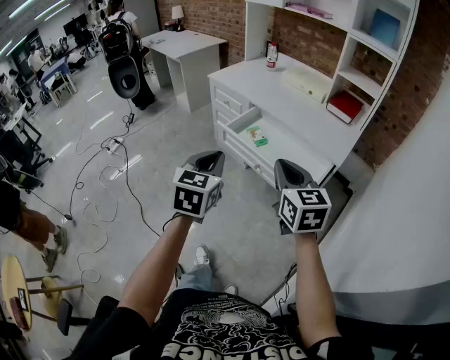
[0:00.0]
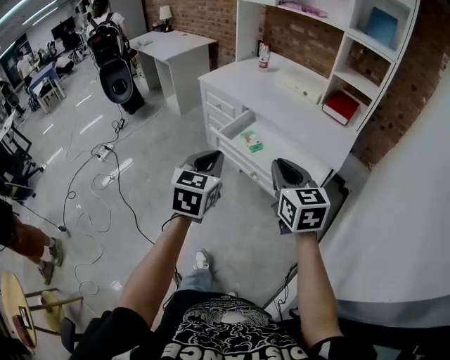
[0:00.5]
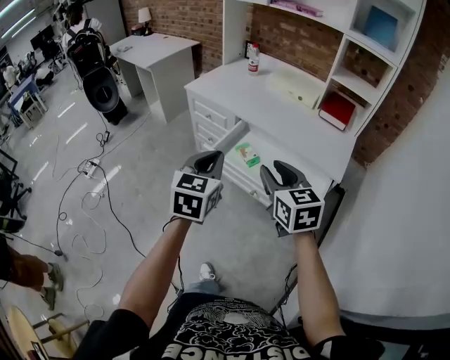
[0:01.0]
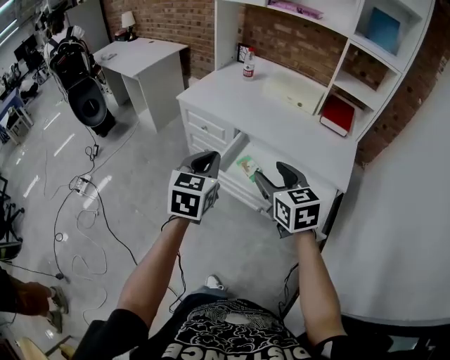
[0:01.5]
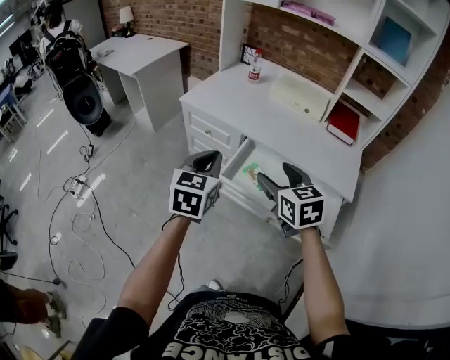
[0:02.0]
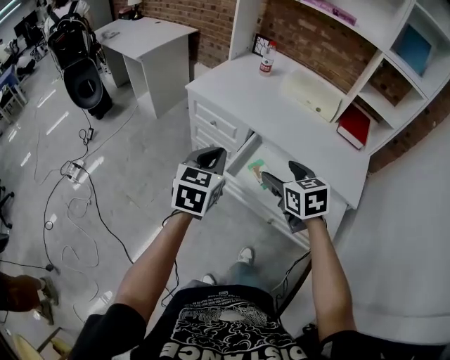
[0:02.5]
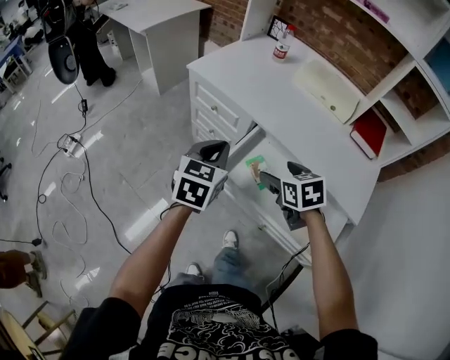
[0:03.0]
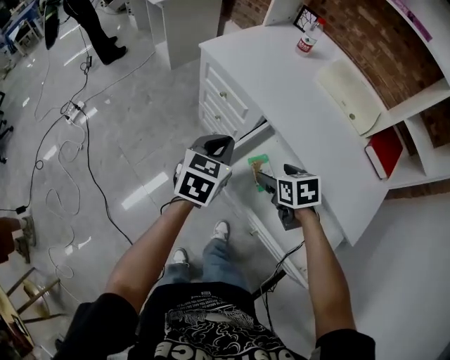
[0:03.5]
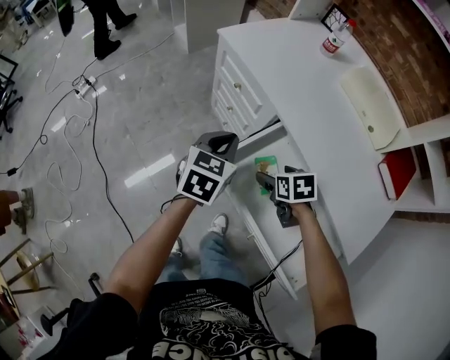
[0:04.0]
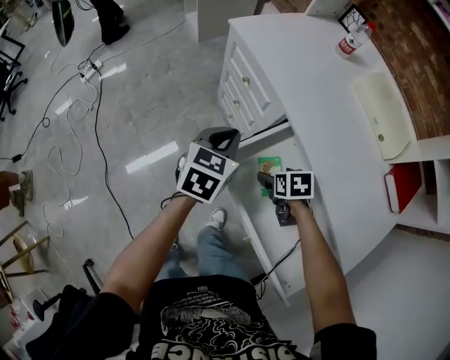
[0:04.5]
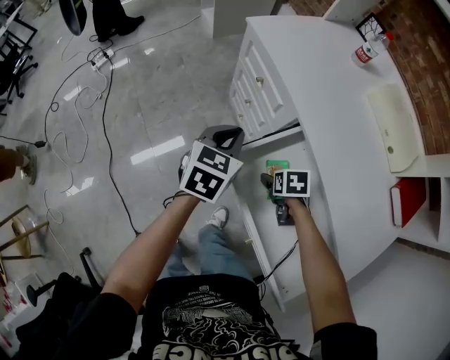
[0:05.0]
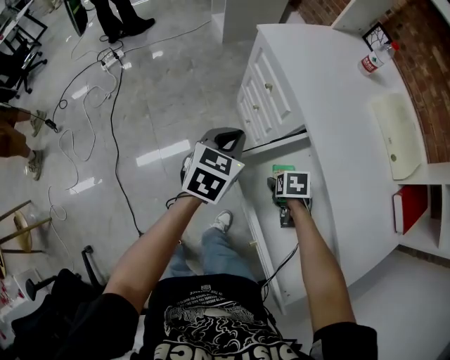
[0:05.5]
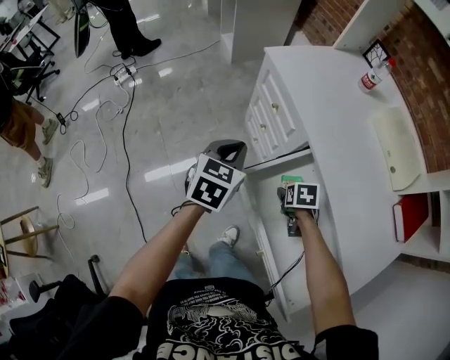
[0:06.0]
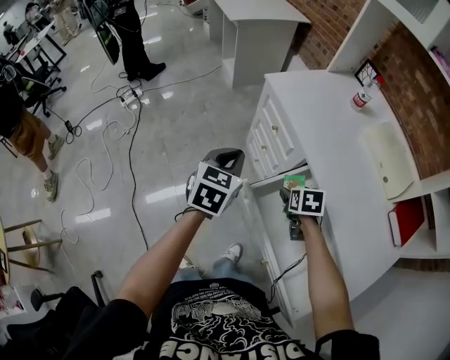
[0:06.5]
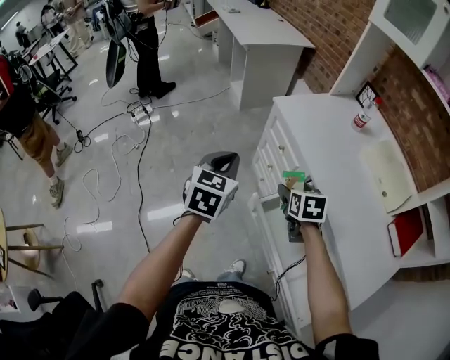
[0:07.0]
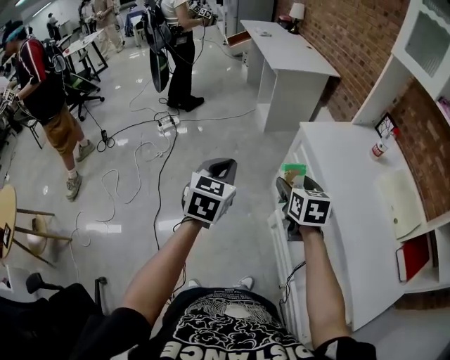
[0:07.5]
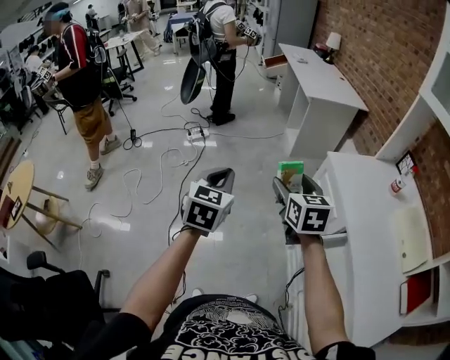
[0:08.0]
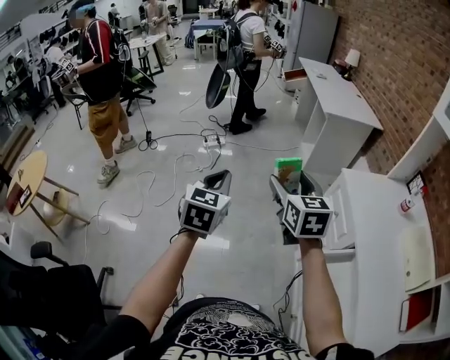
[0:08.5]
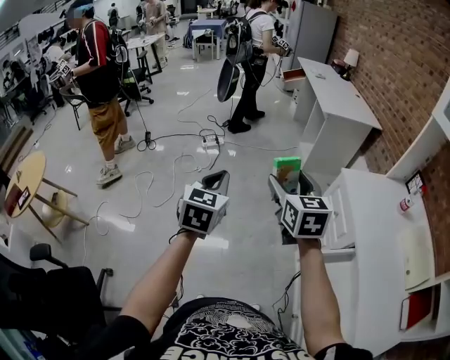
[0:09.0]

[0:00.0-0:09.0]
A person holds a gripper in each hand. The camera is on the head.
0:00.0 to 0:02.0: The left gripper shifts about 30 cm forward. Meanwhile the right gripper travels forward and to the left by roughly 30 cm, and opens up.
0:02.0 to 0:04.5: The grippers both shift downward and forward by about 30 cm. The left gripper rotates roughly 20 degrees. The right gripper tilts its fingers approximately 40 degrees downward.
0:04.5 to 0:07.0: The left gripper changes place by about 20 cm. The right gripper shifts some 20 cm upward, and swivels roughly 20 degrees.
0:07.0 to 0:09.0: The left gripper moves about 30 cm, and swivels about 30 degrees. The right gripper moves about 40 cm, and tips its fingers upward by some 30 degrees.

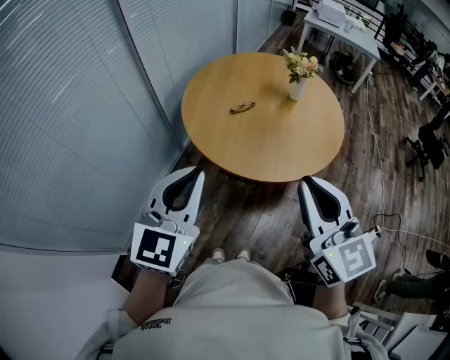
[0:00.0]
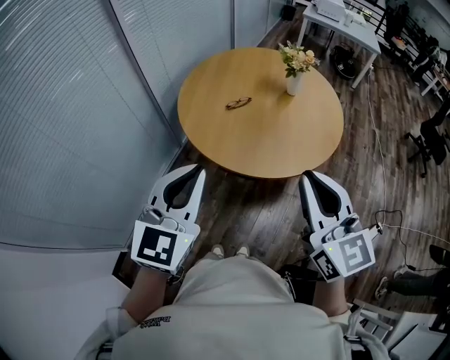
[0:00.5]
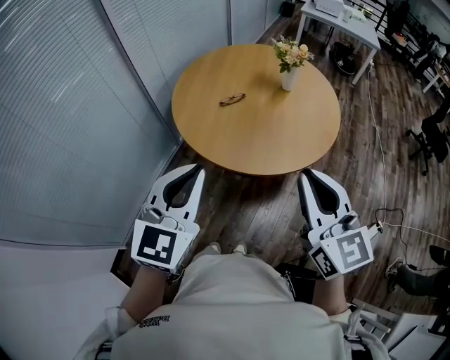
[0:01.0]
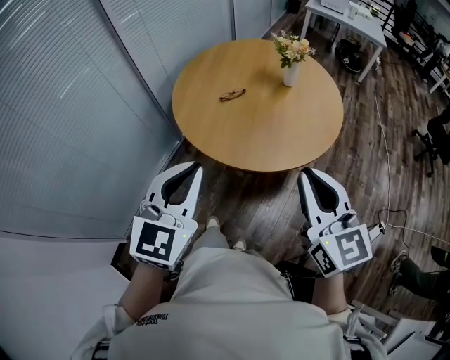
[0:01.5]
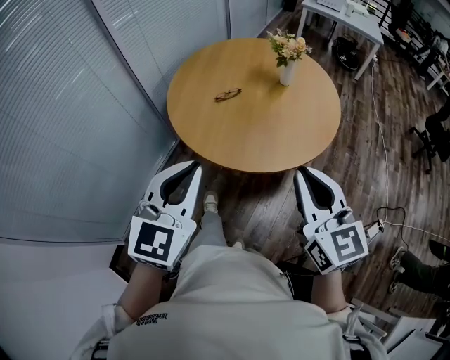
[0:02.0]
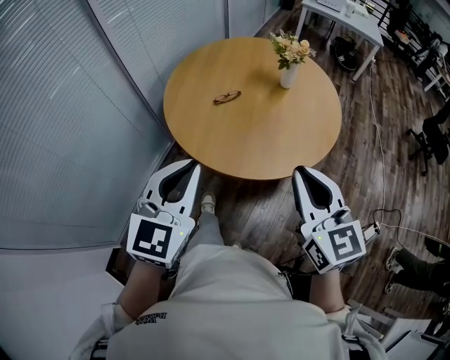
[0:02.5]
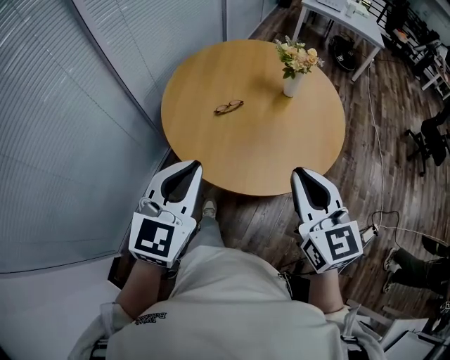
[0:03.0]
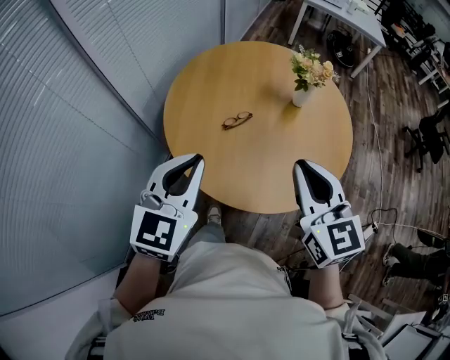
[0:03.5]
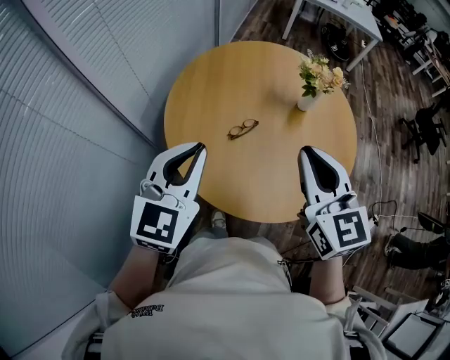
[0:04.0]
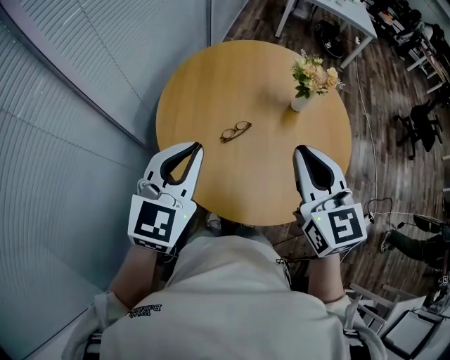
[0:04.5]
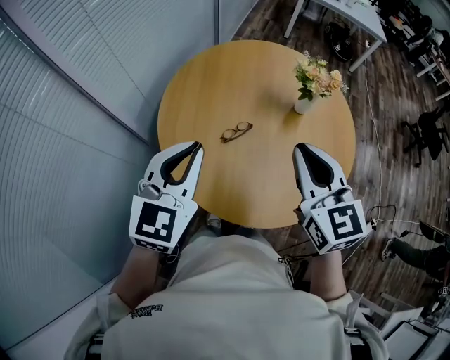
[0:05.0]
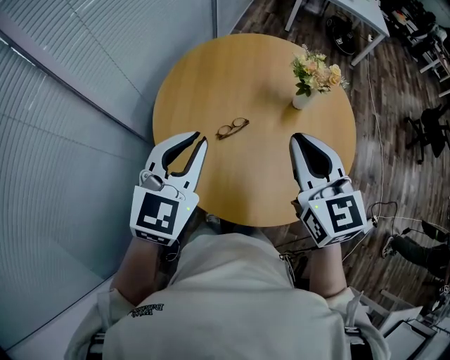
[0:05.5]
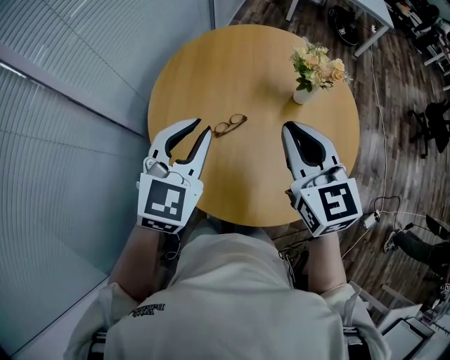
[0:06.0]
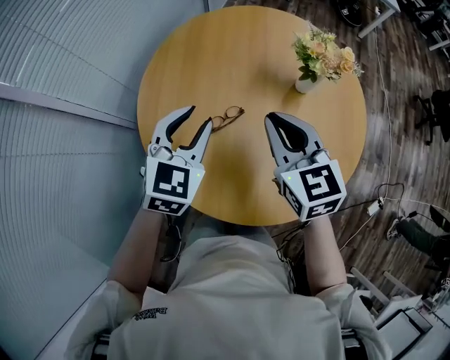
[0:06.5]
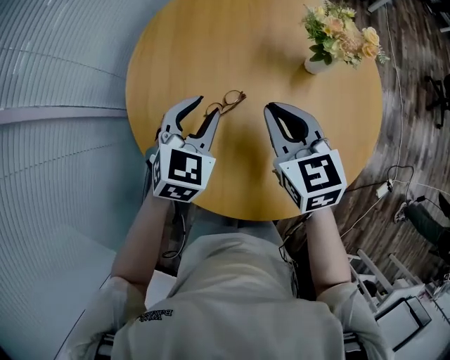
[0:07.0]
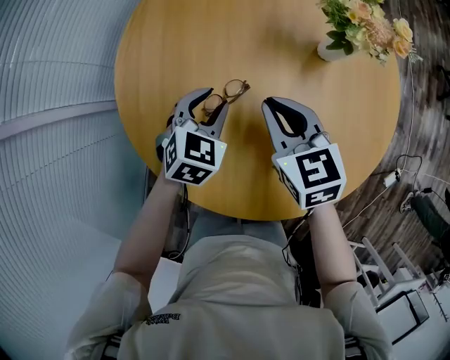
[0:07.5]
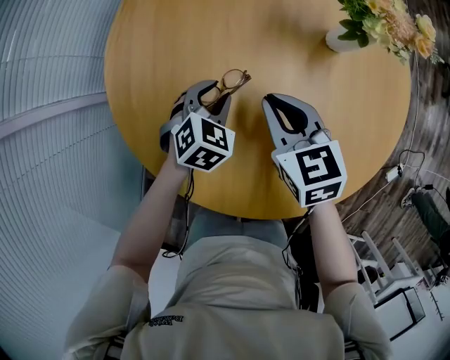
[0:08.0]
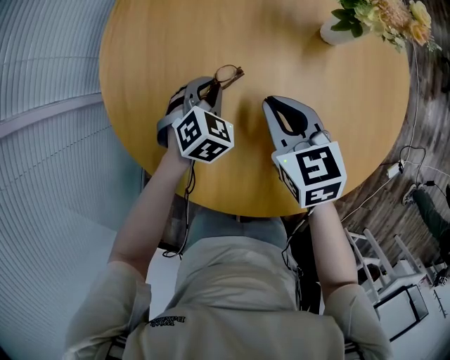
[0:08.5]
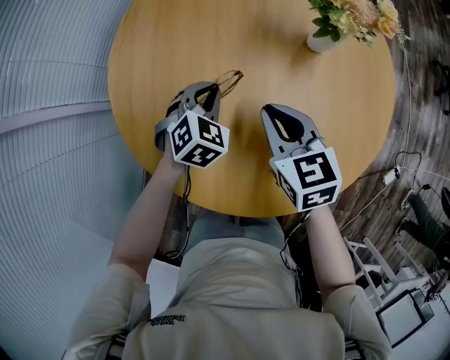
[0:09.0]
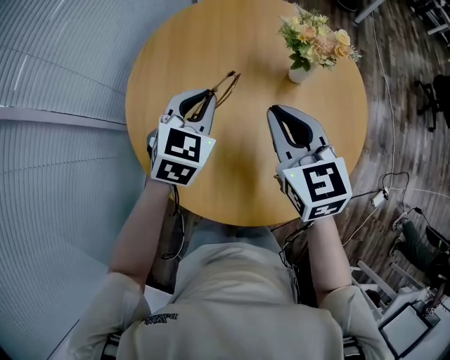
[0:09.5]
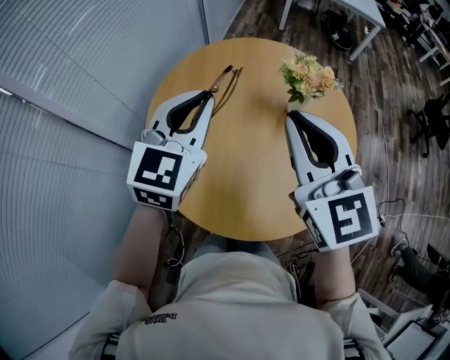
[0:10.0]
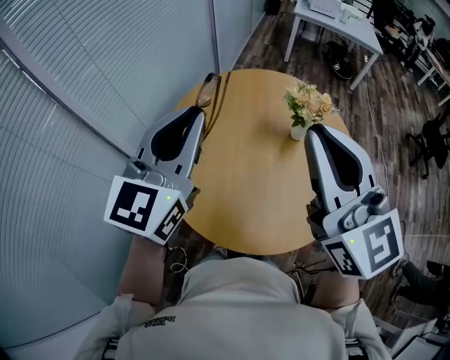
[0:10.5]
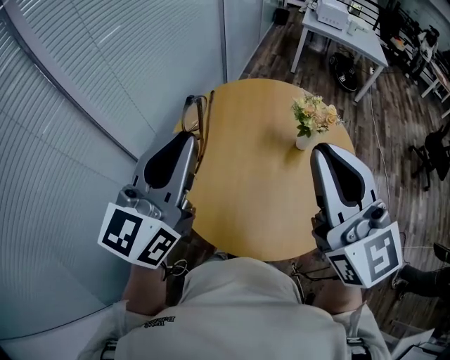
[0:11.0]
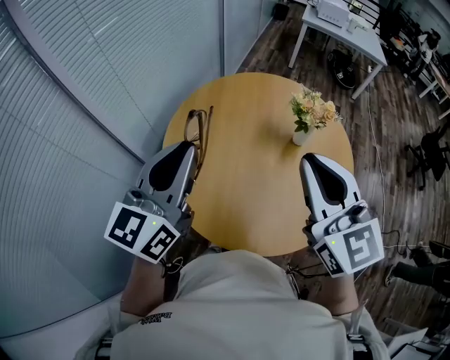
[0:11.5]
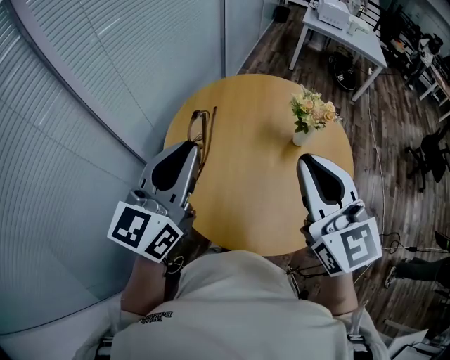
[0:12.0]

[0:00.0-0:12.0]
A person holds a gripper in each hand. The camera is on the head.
0:00.0 to 0:02.0: The left gripper is displaced to the right by roughly 10 cm. Meanwhile the right gripper is displaced to the right and downward by some 10 cm.
0:02.0 to 0:04.0: Both grippers move forward and to the left, roughly 35 cm.
0:04.0 to 0:06.0: The right gripper shifts roughly 10 cm forward; the left gripper heads forward and to the right, covering some 10 cm.
0:06.0 to 0:08.0: Both grippers travel together downward, approximately 35 cm. The left gripper angles its fingers downward, by approximately 30 degrees, and opens, while the right gripper swivels roughly 30 degrees.
0:08.0 to 0:10.0: The grippers both shift upward by about 40 cm. The right gripper tips its fingers upward by roughly 30 degrees; the left gripper tips its fingers upward by approximately 40 degrees, and closes.
0:10.0 to 0:12.0: The right gripper shifts about 10 cm backward. Meanwhile the left gripper heads backward, to the left and upward, covering some 15 cm, and swivels approximately 30 degrees.

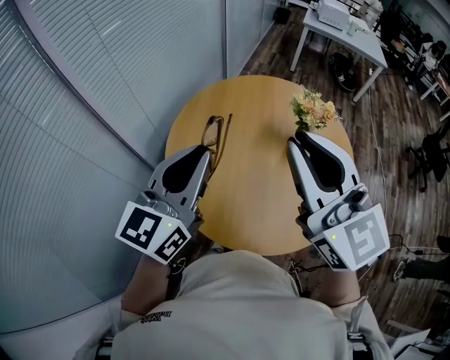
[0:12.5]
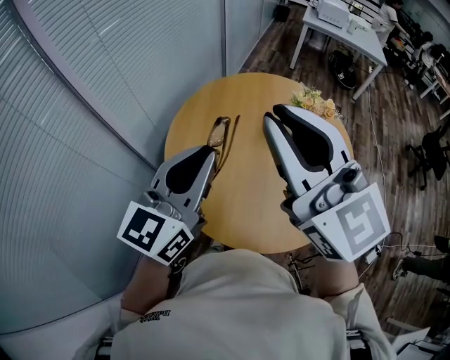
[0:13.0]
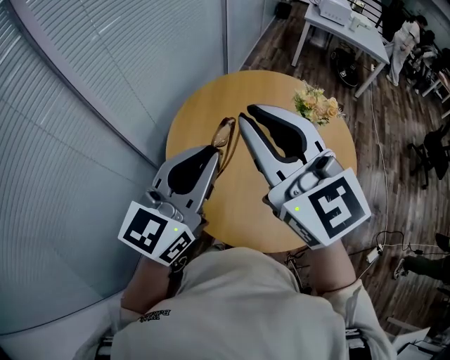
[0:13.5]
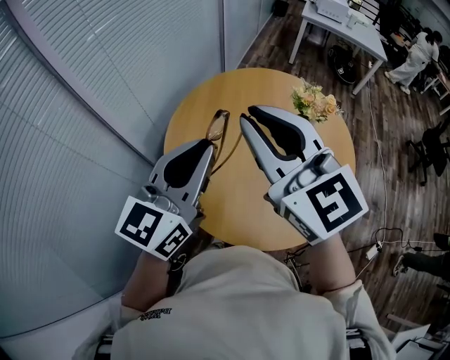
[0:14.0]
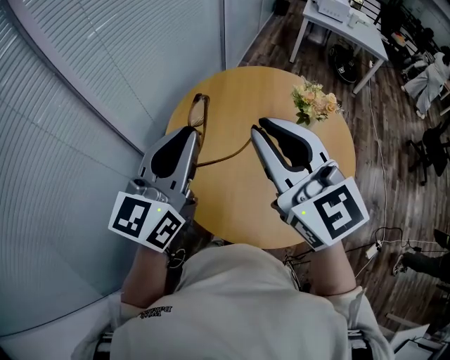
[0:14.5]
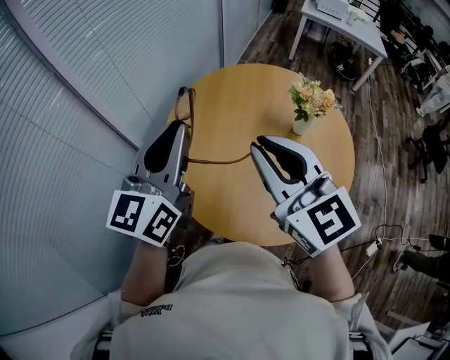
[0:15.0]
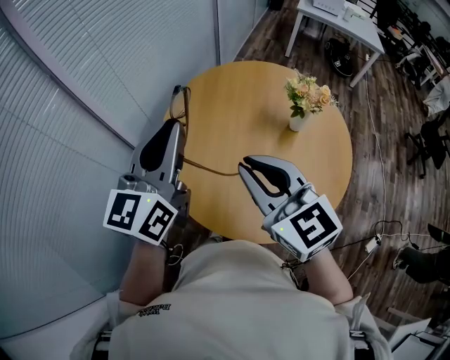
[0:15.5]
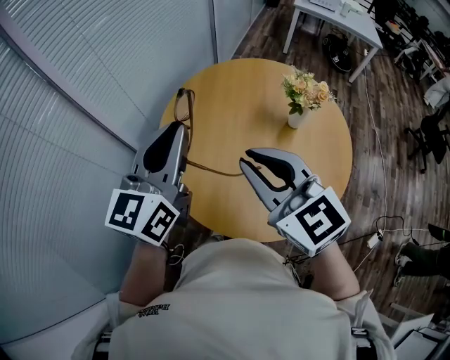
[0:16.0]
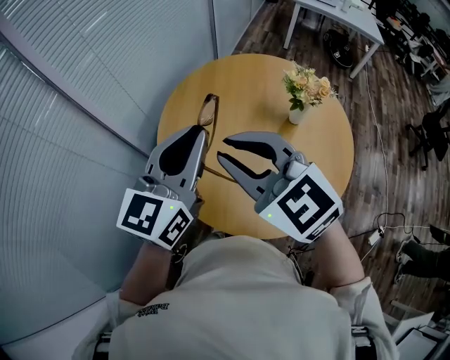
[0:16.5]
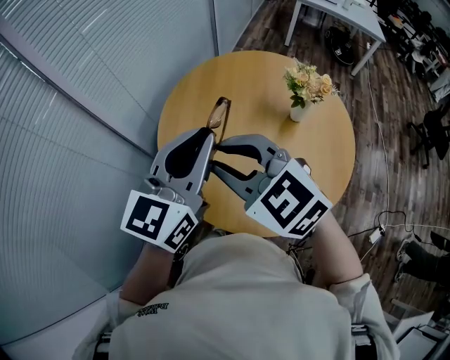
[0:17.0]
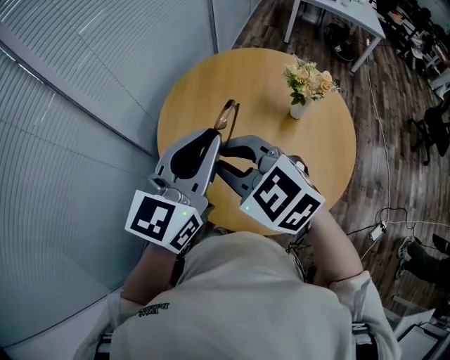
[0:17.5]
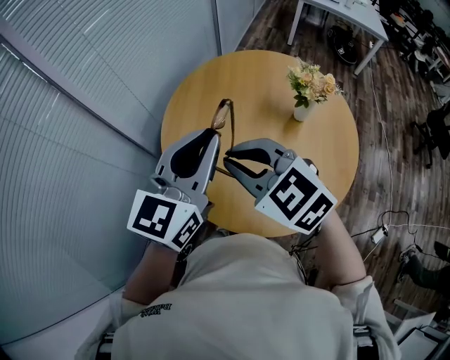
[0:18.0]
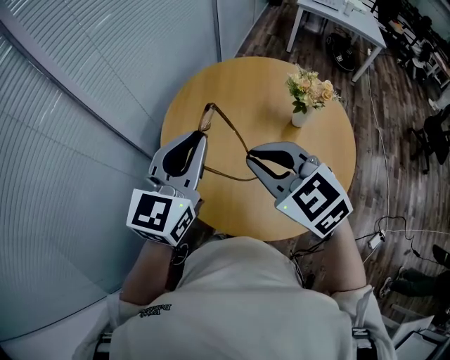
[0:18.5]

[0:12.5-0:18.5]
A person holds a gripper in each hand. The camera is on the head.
0:12.5 to 0:14.5: The right gripper shifts by some 5 cm.
0:14.5 to 0:16.5: The right gripper heads downward, covering approximately 5 cm, and turns by some 20 degrees.
0:16.5 to 0:18.5: The right gripper shifts approximately 5 cm downward.
